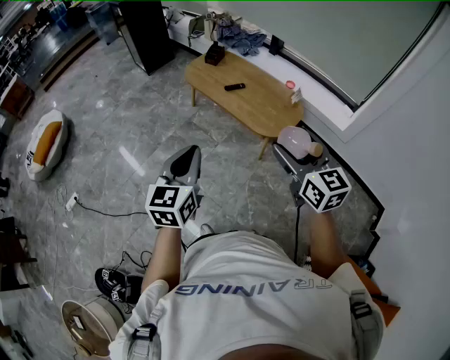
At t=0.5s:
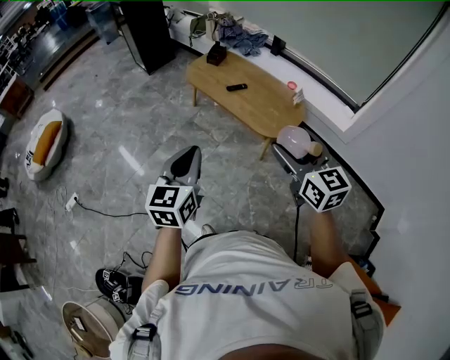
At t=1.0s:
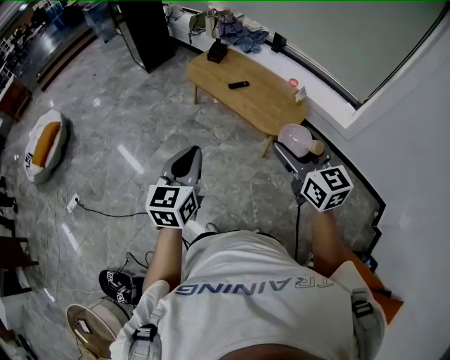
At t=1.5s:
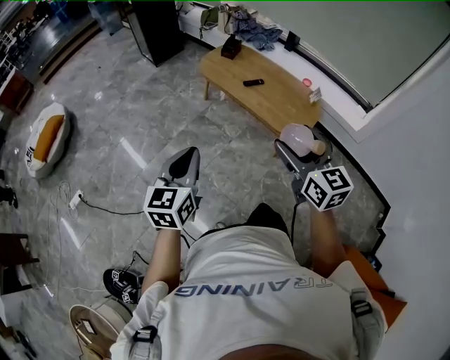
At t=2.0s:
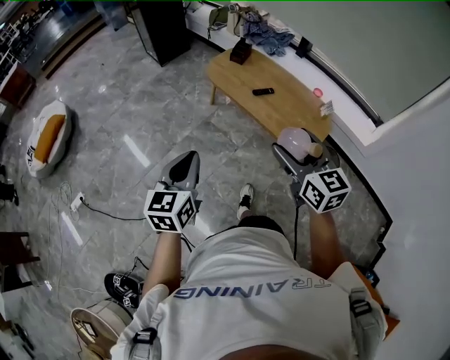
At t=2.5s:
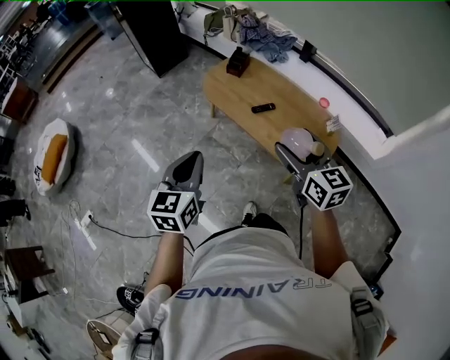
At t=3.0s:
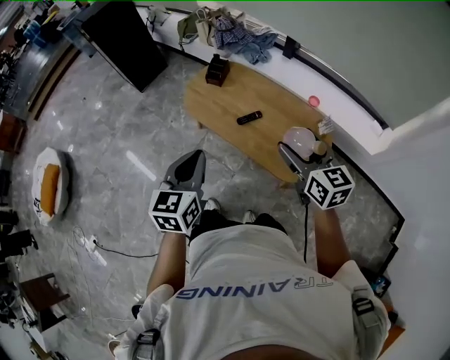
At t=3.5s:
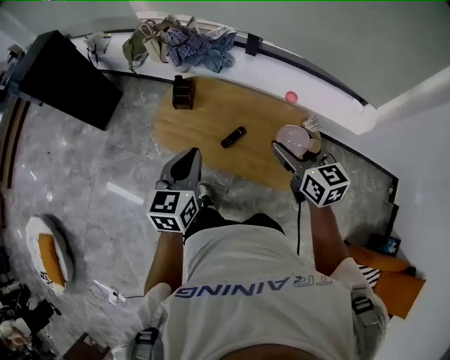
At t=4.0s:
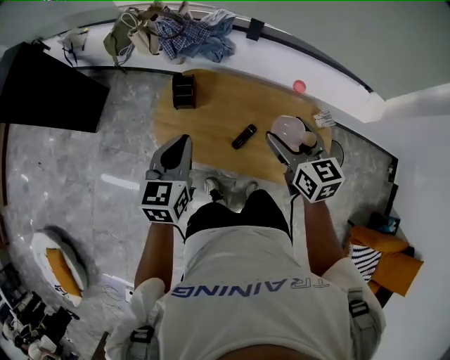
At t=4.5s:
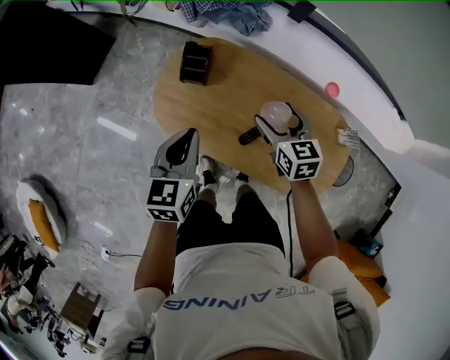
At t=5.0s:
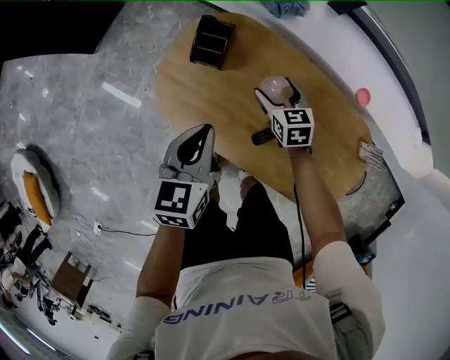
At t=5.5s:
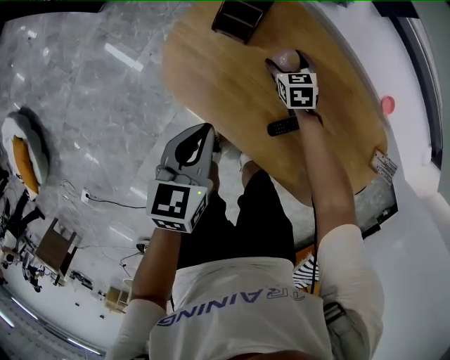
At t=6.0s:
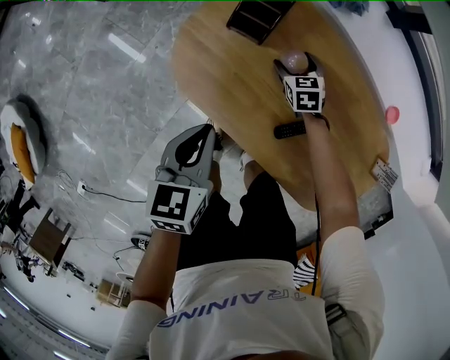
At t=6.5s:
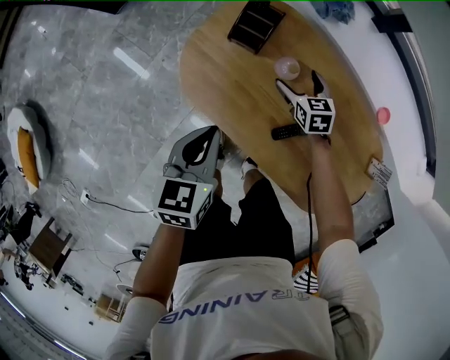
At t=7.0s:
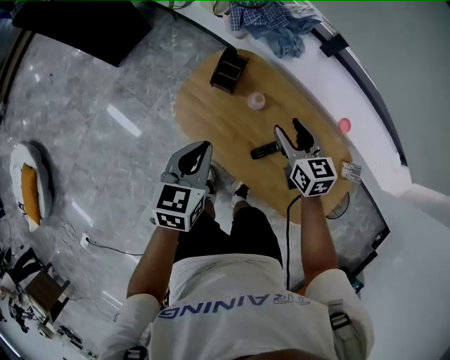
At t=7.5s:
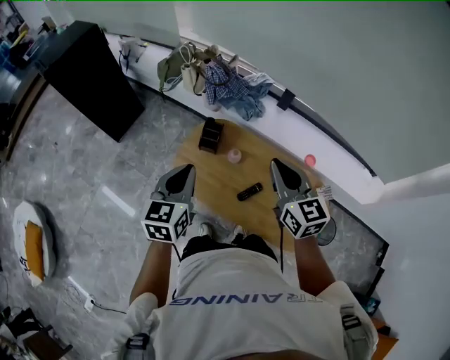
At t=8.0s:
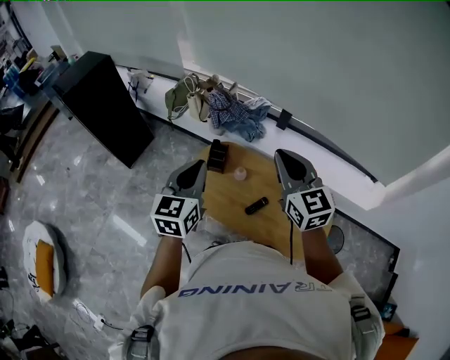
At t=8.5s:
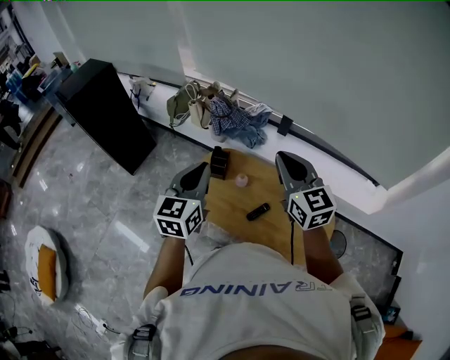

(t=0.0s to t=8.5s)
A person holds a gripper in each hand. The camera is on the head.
t=0.0s - t=2.0s: The right gripper heads forward and to the left, covering approximately 20 cm, while the left gripper moves to the left and forward, roughly 20 cm.
t=2.0s - t=4.0s: The pair of grippers is taken roughly 70 cm. The left gripper rotates about 30 degrees. The right gripper turns by some 30 degrees.
t=4.0s - t=6.5s: The right gripper moves downward and forward, about 50 cm, and swivels about 30 degrees, while the left gripper is displaced downward by approximately 25 cm, and changes its angle by some 30 degrees.
t=6.5s - t=8.5s: The right gripper shifts some 60 cm upward, angles its fingers upward, by approximately 40 degrees, and closes up, while the left gripper is displaced upward by roughly 40 cm, and tips its fingers upward by some 30 degrees.

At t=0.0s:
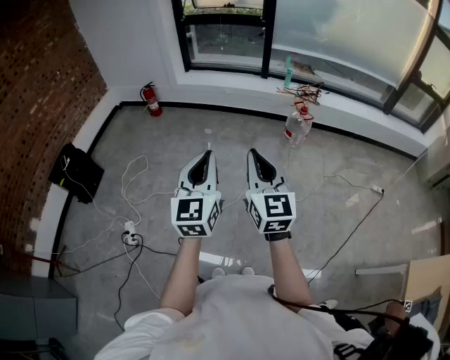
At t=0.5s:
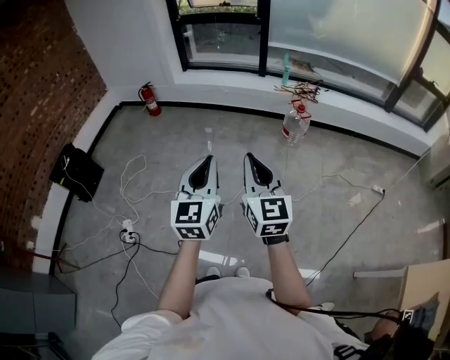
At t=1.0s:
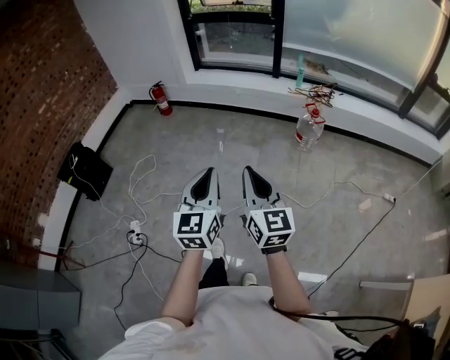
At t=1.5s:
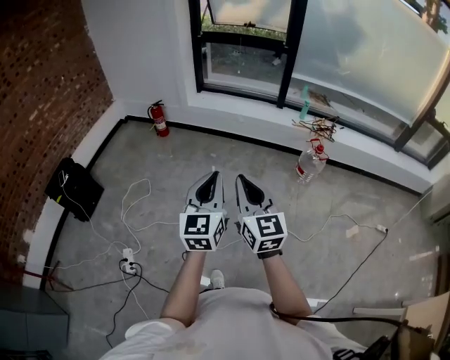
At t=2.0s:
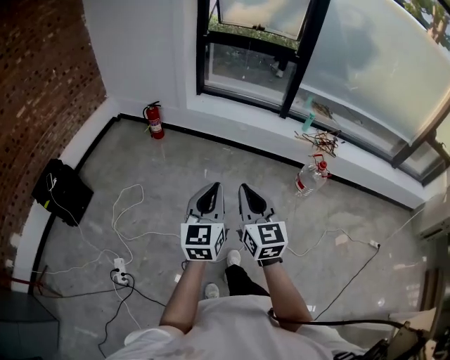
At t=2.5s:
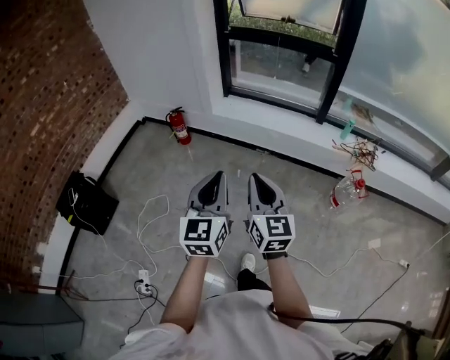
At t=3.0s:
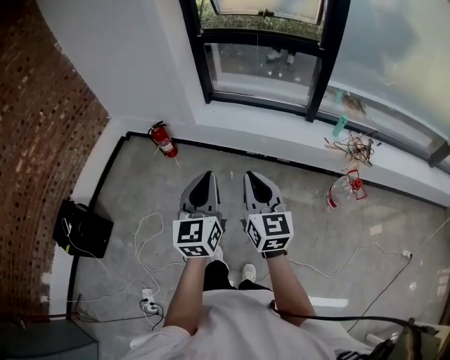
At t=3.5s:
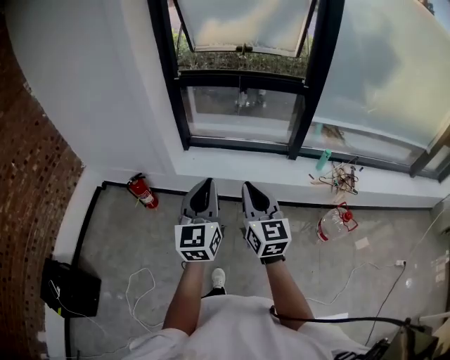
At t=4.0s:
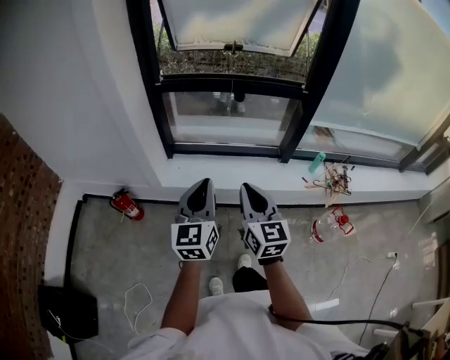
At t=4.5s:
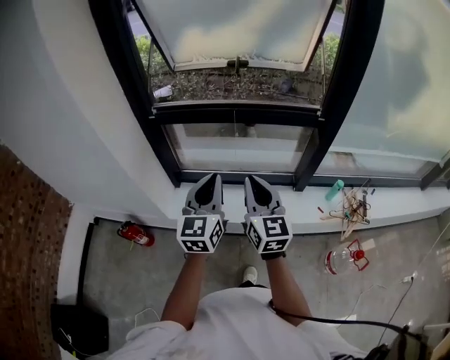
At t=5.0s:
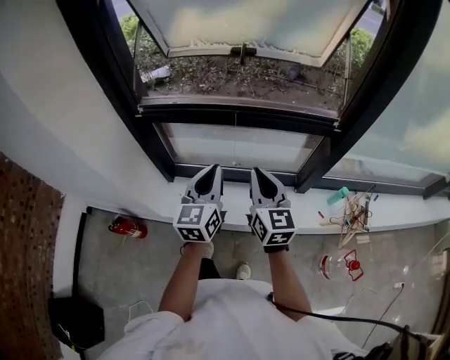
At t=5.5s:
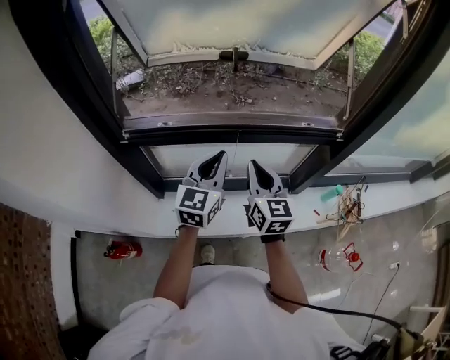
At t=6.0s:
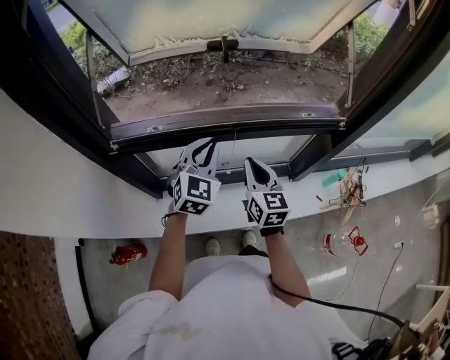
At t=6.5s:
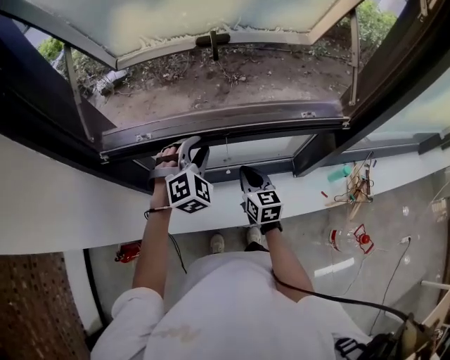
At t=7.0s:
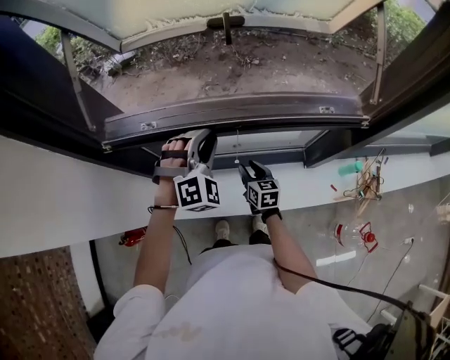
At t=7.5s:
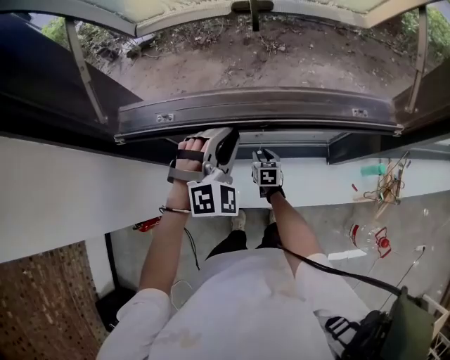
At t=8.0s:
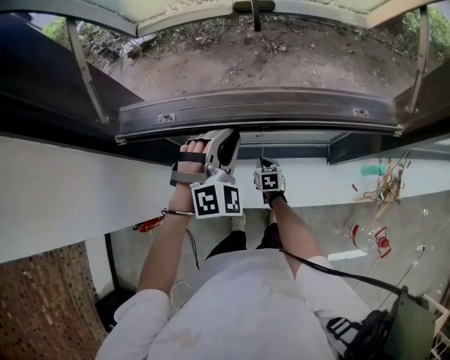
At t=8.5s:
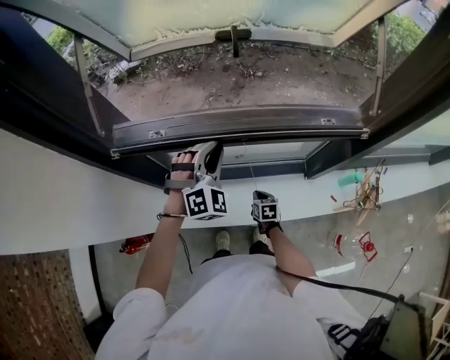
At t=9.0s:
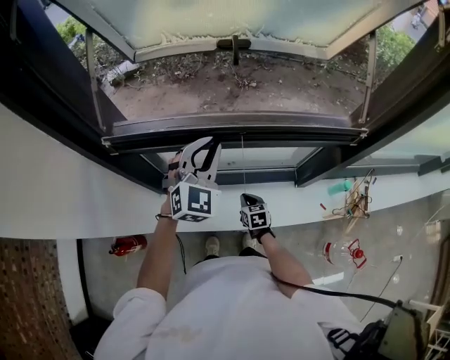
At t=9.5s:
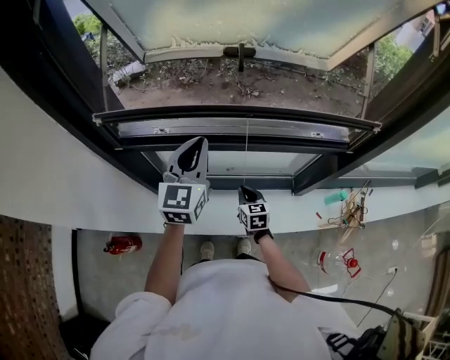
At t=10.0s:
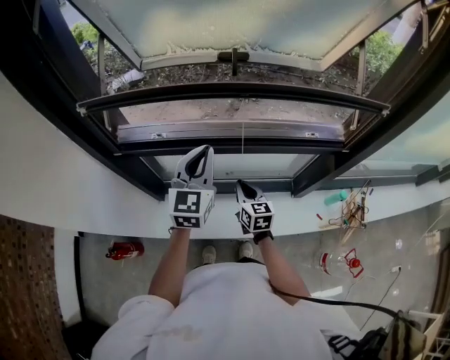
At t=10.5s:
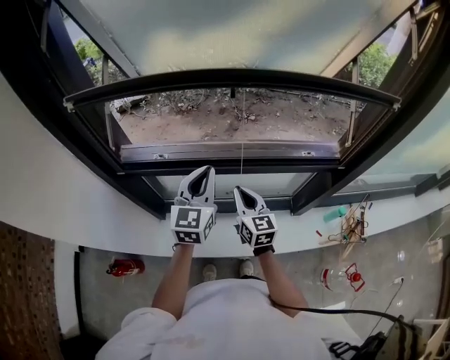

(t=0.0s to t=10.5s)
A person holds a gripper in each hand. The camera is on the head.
t=0.0s - t=2.0s: The right gripper is displaced forward and to the left by roughly 35 cm. Meanwhile the left gripper shifts approximately 30 cm forward.
t=2.0s - t=4.0s: The two grippers travel together, forward, roughly 80 cm.
t=4.0s - t=6.5s: The two grippers travel together, forward, approximately 60 cm. The left gripper twists approximately 60 degrees clockwise, seen from behind. The right gripper swivels roughly 20 degrees.
t=6.5s - t=8.5s: The right gripper travels downward by about 25 cm, tilts its fingers about 30 degrees downward, and opens, then closes again.
t=8.5s - t=10.5s: The right gripper moves upward, about 30 cm, and tips its fingers upward by about 40 degrees. The left gripper goes some 10 cm upward, and rotates around the line of its fingers by some 60 degrees, counterclockwise from behind.

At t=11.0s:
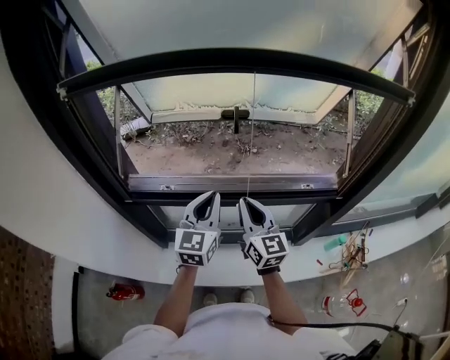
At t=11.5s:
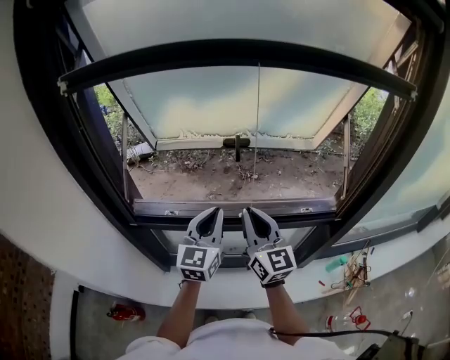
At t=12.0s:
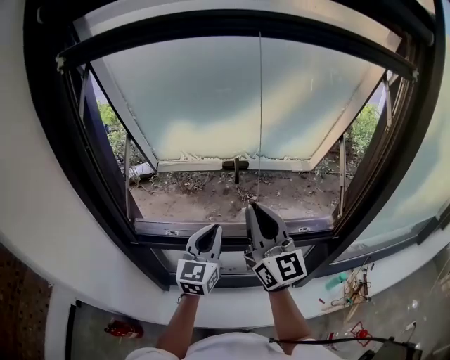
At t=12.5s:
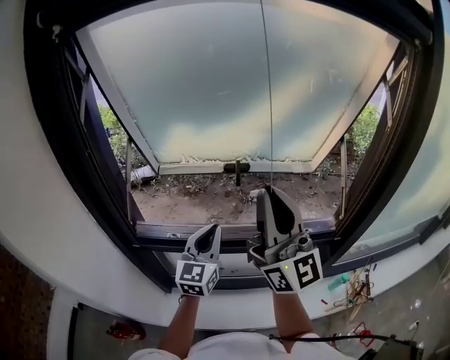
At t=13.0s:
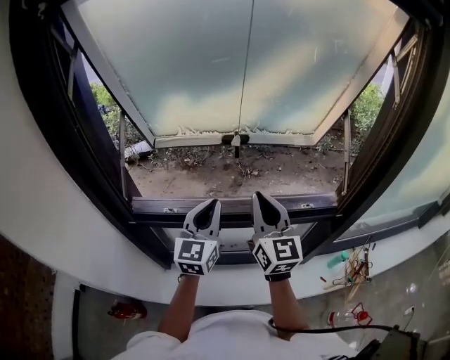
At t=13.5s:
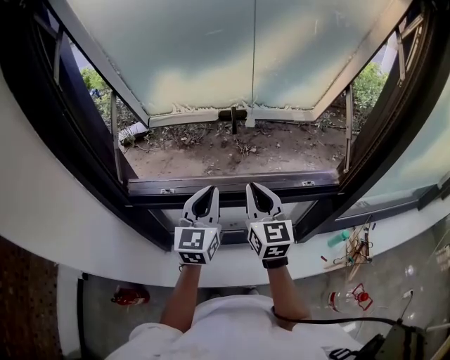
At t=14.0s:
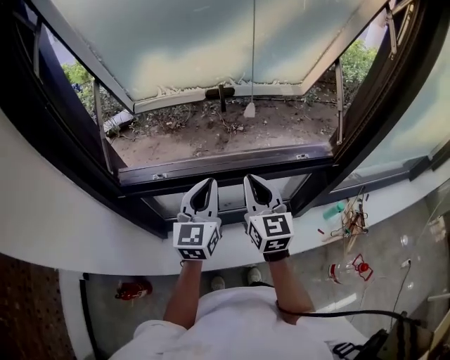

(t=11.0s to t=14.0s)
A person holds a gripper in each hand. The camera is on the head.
t=11.0s - t=12.5s: The left gripper goes about 5 cm upward; the right gripper travels upward by some 30 cm, and tips its fingers upward by roughly 40 degrees.
t=12.5s - t=14.0s: The left gripper shifts some 5 cm downward, while the right gripper travels downward by some 25 cm, and tips its fingers downward by about 40 degrees.

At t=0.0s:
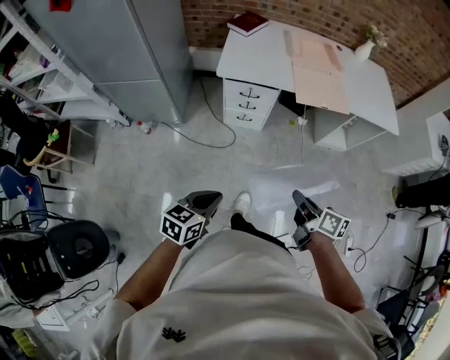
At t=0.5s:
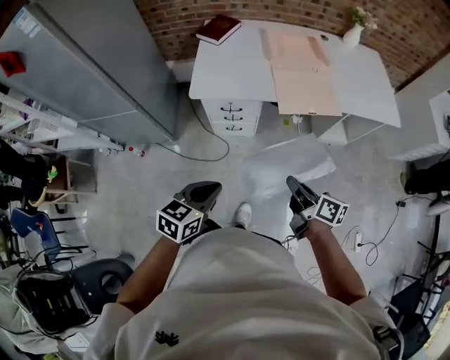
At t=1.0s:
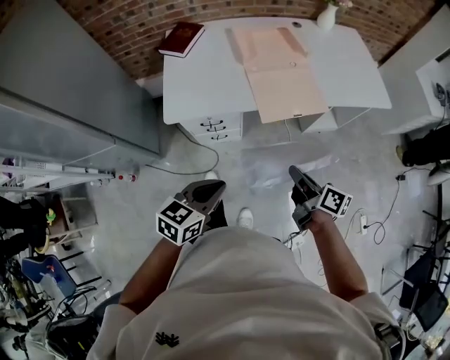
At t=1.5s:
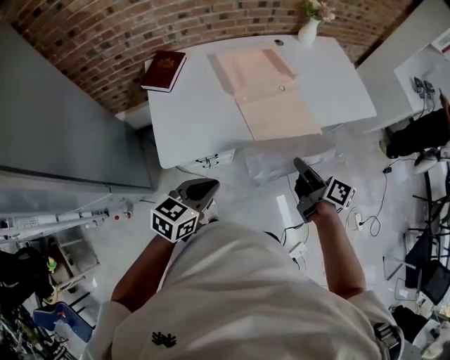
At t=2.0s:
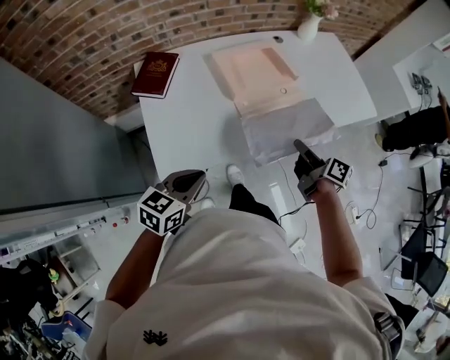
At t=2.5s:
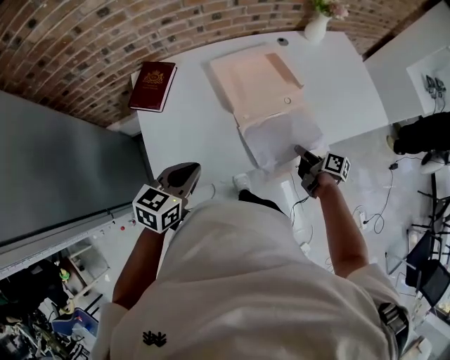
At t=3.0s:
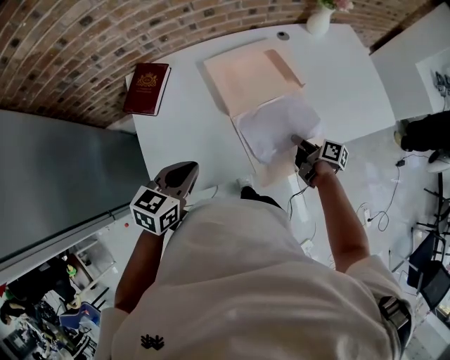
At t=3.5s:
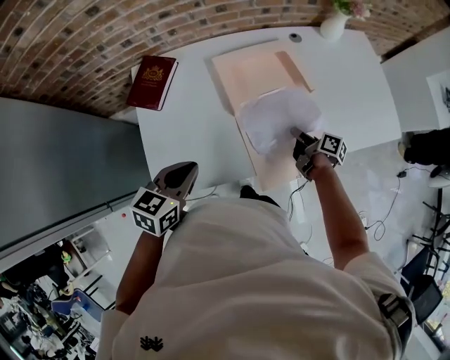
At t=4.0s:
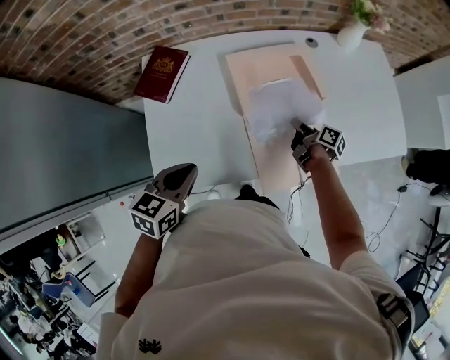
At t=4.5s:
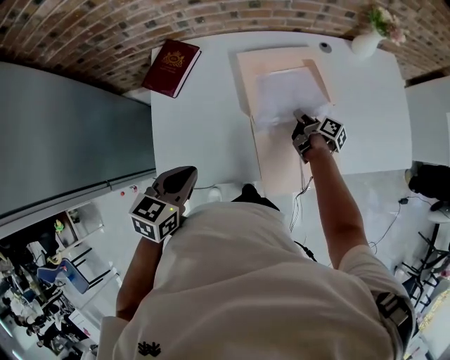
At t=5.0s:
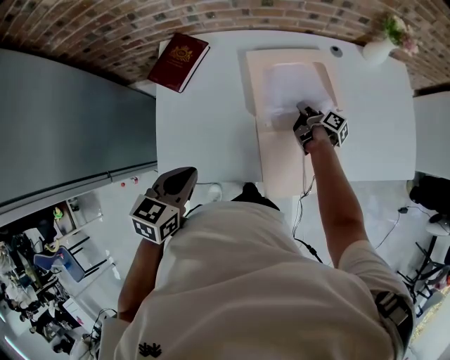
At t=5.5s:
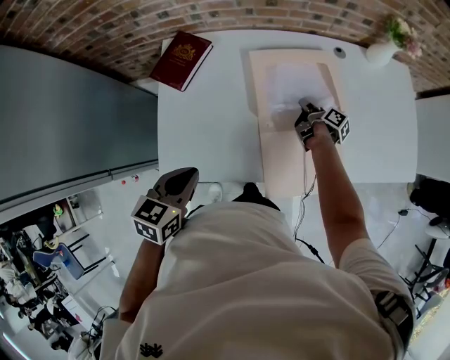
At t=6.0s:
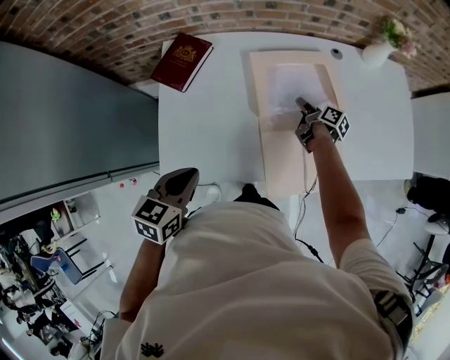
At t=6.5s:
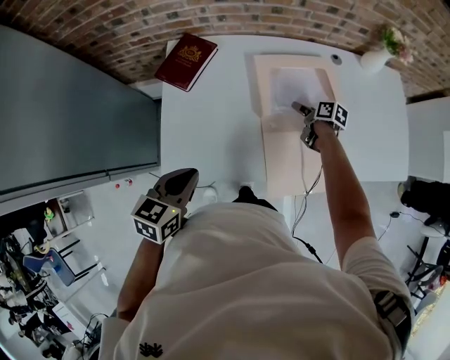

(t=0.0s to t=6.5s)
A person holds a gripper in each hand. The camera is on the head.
t=0.0s - t=2.0s: The two grippers travel together, about 60 cm. The right gripper swivels some 30 degrees. Meanwhile the left gripper turns by roughly 30 degrees.
t=2.0s - t=4.5s: The right gripper heads forward and downward, covering roughly 35 cm, and turns by about 20 degrees. Meanwhile the left gripper goes roughly 15 cm forward, and turns by about 20 degrees.
t=4.5s - t=6.5s: The right gripper shifts by about 5 cm, turns by about 30 degrees, and opens its fingers.
